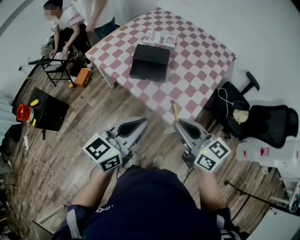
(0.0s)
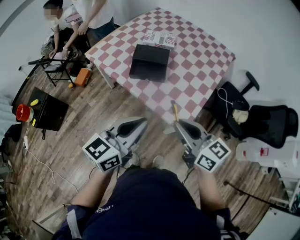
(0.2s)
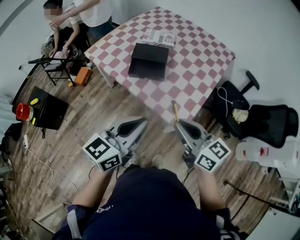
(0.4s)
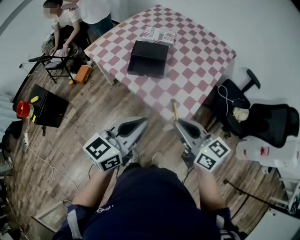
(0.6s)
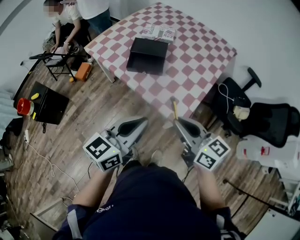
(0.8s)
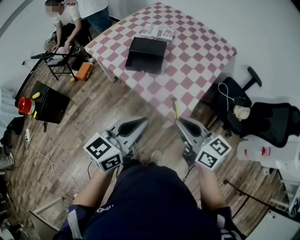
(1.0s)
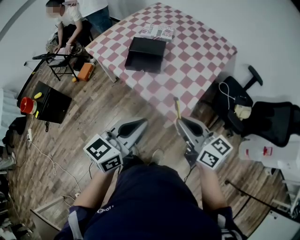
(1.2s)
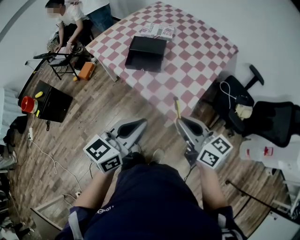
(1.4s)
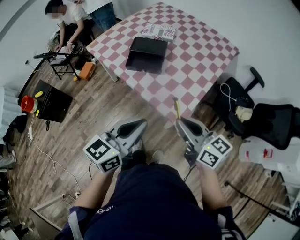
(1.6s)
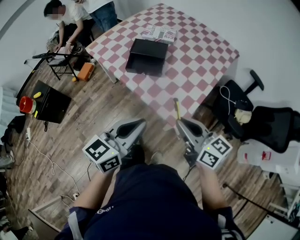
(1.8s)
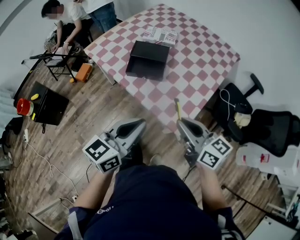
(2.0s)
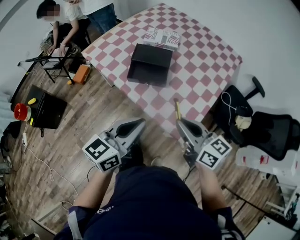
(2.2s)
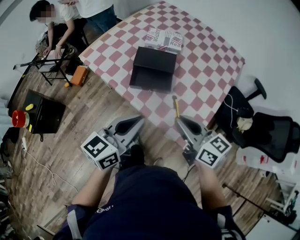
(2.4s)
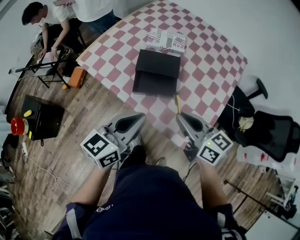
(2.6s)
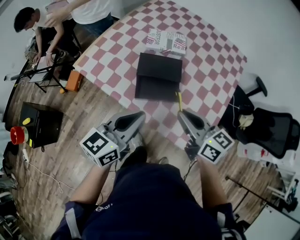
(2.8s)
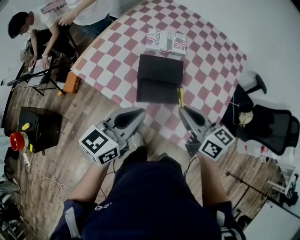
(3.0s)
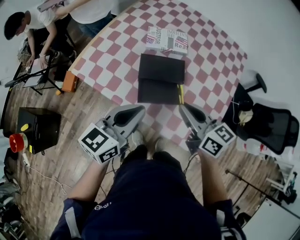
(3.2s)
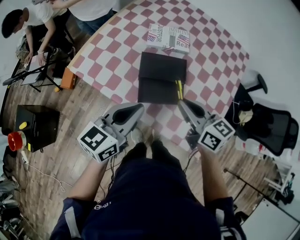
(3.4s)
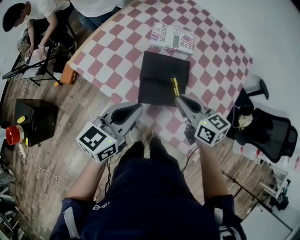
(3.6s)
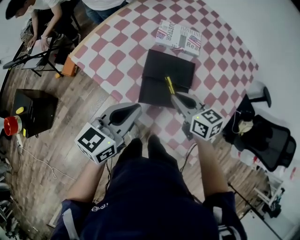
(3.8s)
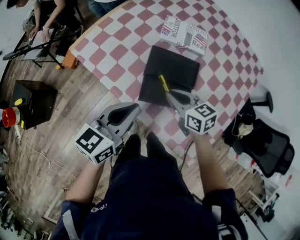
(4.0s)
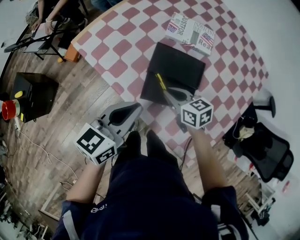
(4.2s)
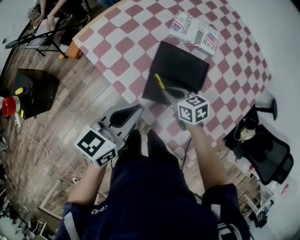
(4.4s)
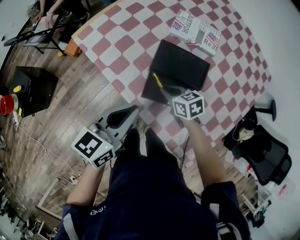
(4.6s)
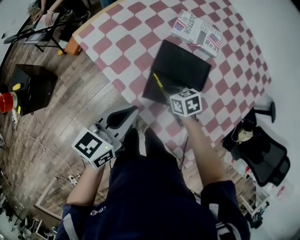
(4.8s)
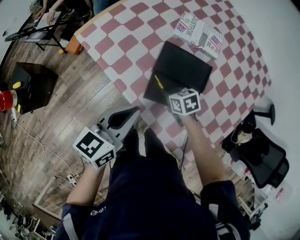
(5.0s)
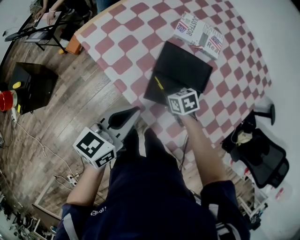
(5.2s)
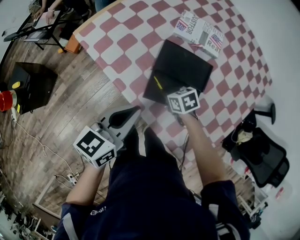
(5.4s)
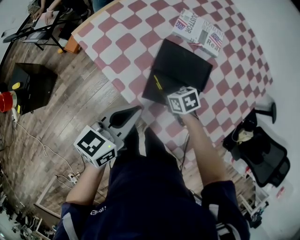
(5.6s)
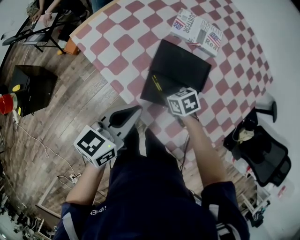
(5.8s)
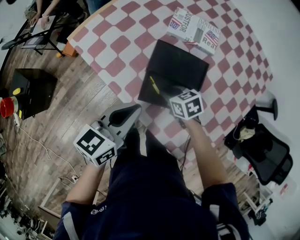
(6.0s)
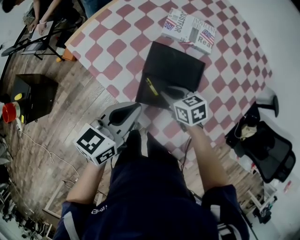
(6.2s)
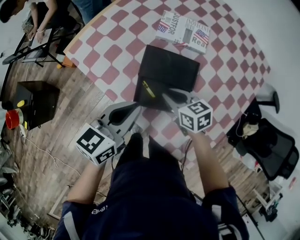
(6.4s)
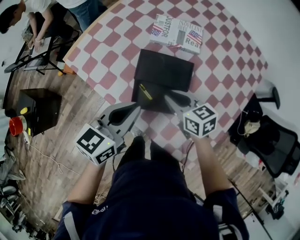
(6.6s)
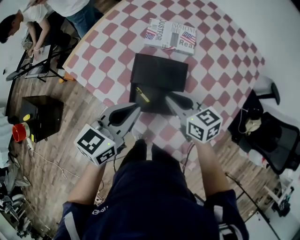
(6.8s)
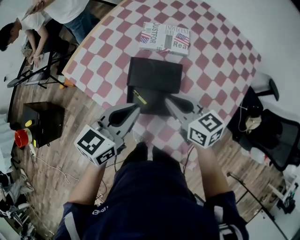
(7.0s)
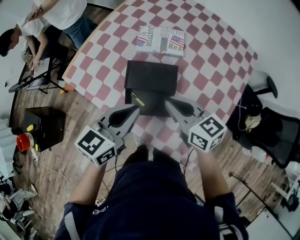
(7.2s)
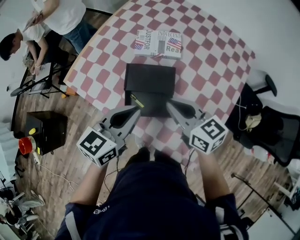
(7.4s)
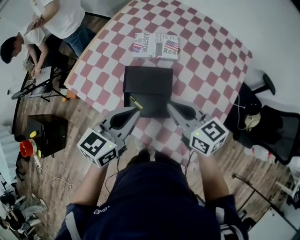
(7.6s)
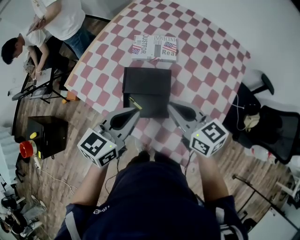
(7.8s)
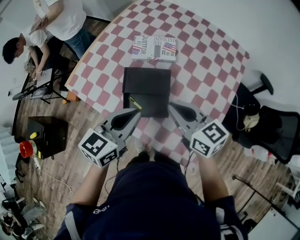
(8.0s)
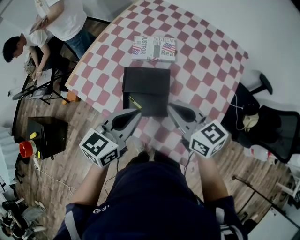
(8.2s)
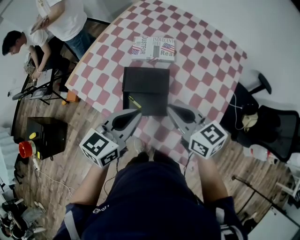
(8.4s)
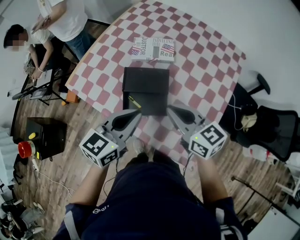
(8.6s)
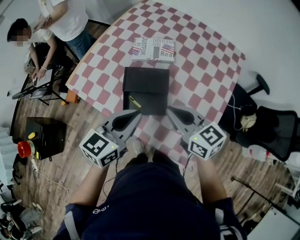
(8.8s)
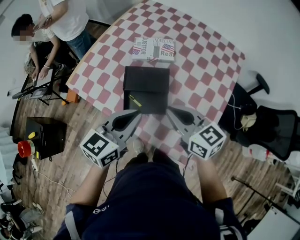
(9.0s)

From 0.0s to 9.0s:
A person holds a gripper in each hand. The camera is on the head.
From 0.0s to 1.6s: Both grippers travel together to the right, some 5 cm.
From 1.6s to 3.0s: Both grippers move forward and to the left, roughly 35 cm.
From 3.0s to 4.4s: The right gripper goes roughly 25 cm downward and forward, and changes its angle by some 40 degrees, while the left gripper heads downward and forward, covering roughly 10 cm.
From 6.0s to 7.6s: The left gripper goes roughly 15 cm to the right and upward; the right gripper goes some 30 cm upward and to the right, and tips its fingers upward by about 40 degrees.
From 7.6s to 9.0s: The right gripper travels backward by some 5 cm. The left gripper shifts by about 5 cm.

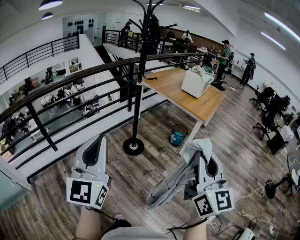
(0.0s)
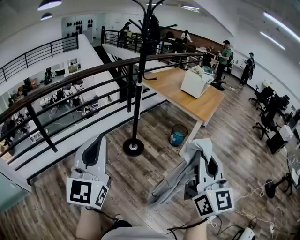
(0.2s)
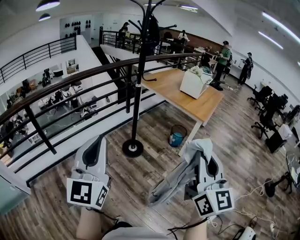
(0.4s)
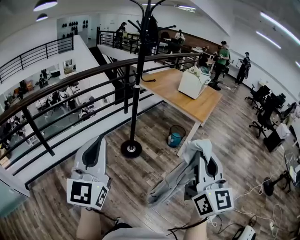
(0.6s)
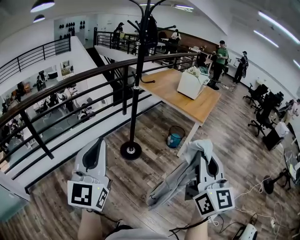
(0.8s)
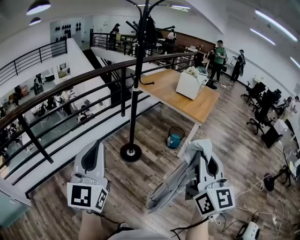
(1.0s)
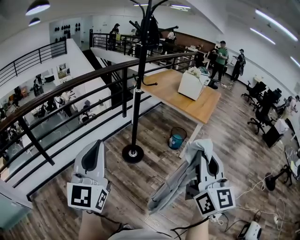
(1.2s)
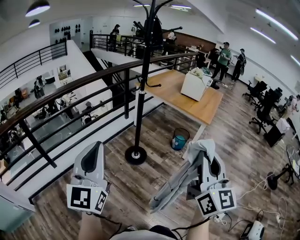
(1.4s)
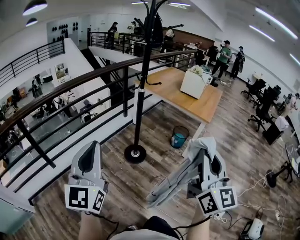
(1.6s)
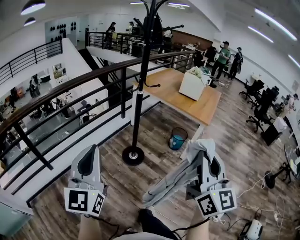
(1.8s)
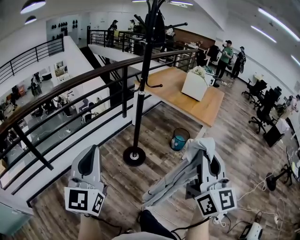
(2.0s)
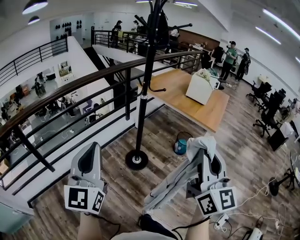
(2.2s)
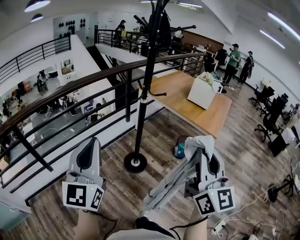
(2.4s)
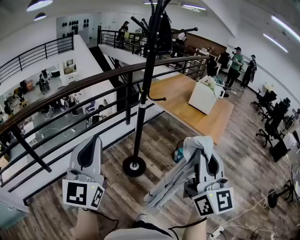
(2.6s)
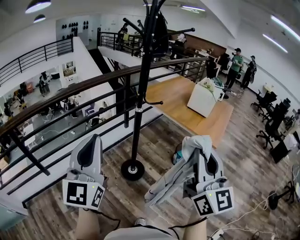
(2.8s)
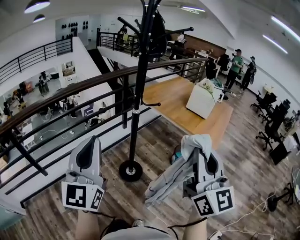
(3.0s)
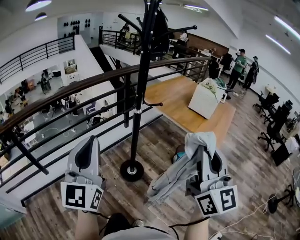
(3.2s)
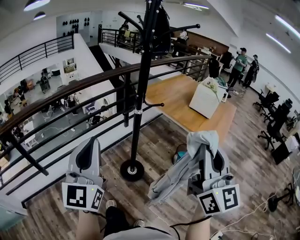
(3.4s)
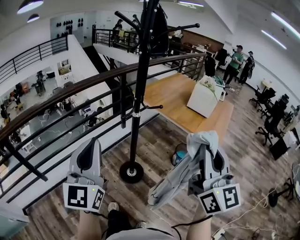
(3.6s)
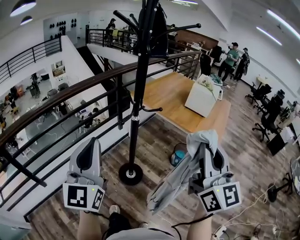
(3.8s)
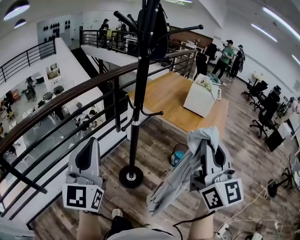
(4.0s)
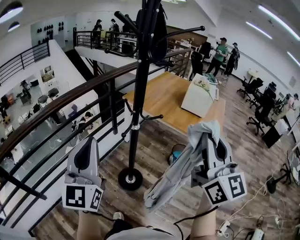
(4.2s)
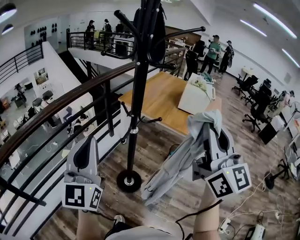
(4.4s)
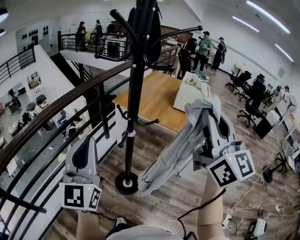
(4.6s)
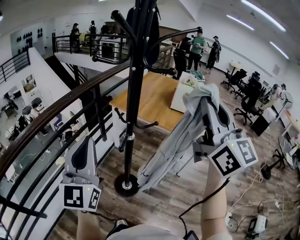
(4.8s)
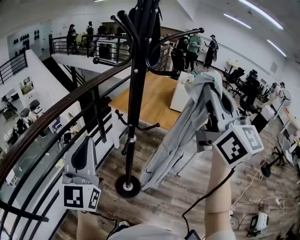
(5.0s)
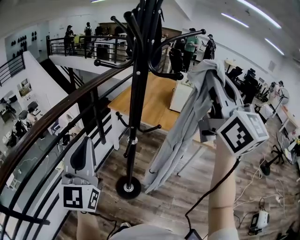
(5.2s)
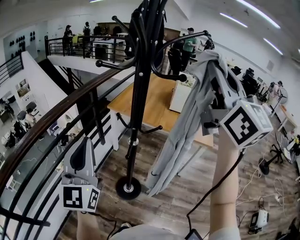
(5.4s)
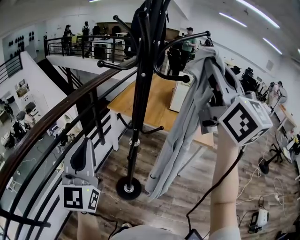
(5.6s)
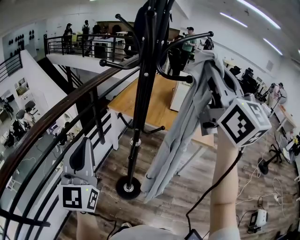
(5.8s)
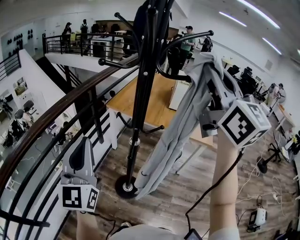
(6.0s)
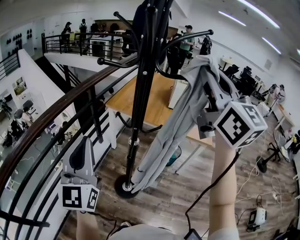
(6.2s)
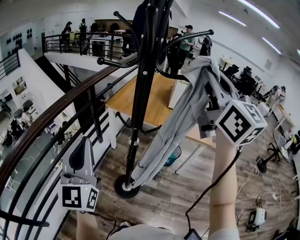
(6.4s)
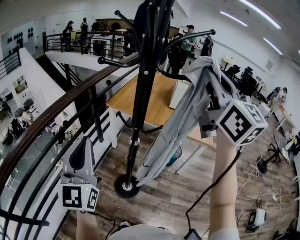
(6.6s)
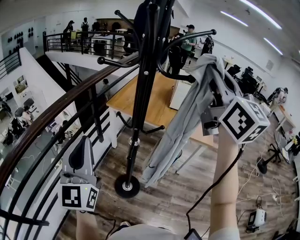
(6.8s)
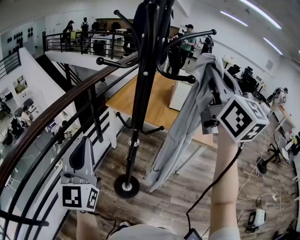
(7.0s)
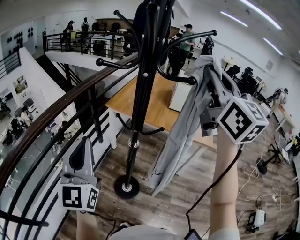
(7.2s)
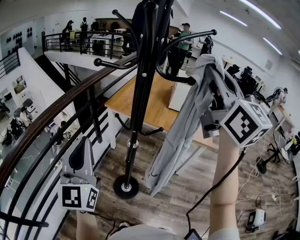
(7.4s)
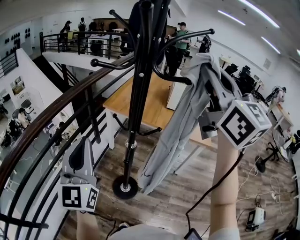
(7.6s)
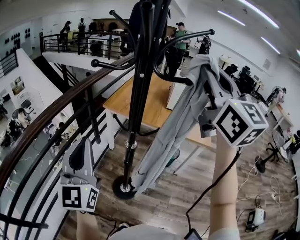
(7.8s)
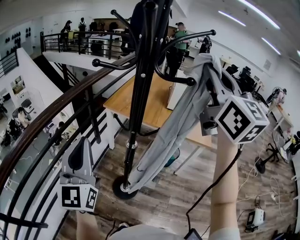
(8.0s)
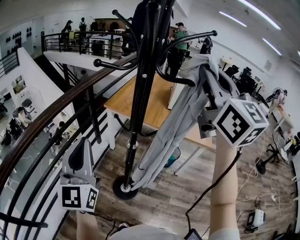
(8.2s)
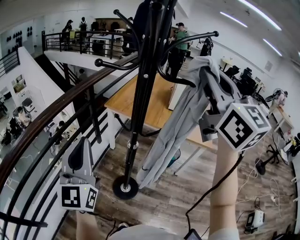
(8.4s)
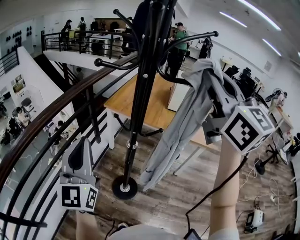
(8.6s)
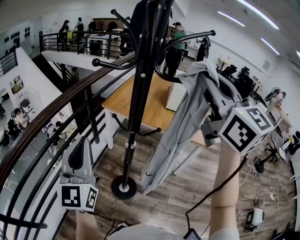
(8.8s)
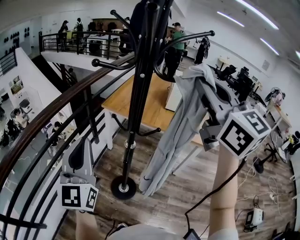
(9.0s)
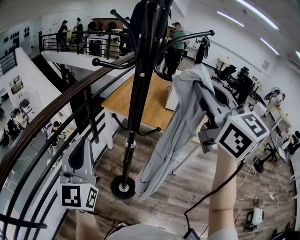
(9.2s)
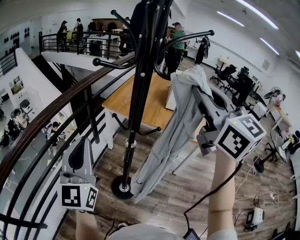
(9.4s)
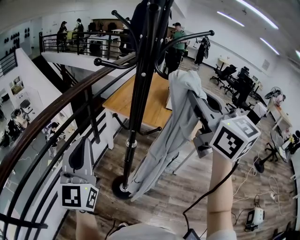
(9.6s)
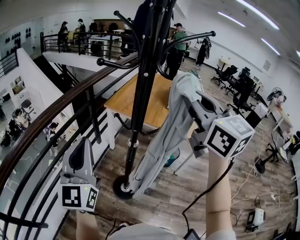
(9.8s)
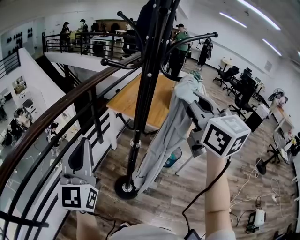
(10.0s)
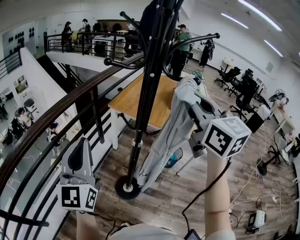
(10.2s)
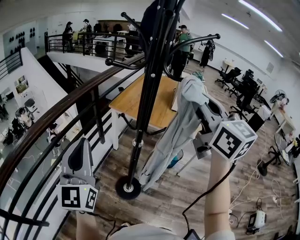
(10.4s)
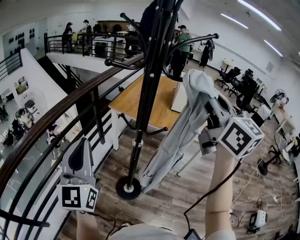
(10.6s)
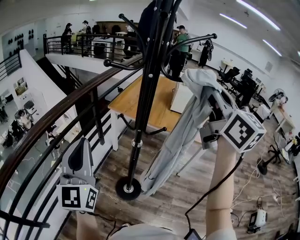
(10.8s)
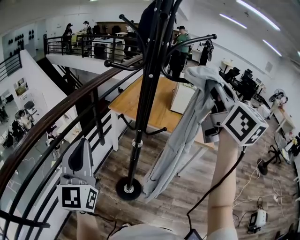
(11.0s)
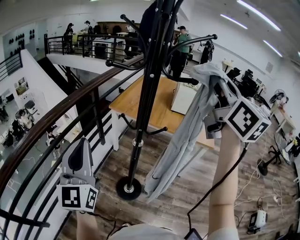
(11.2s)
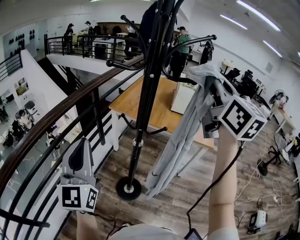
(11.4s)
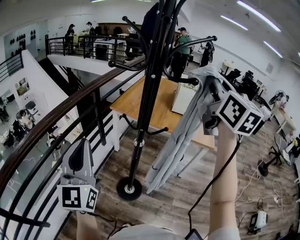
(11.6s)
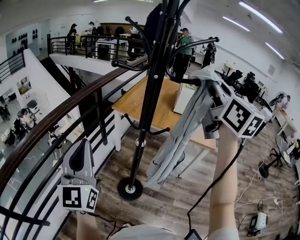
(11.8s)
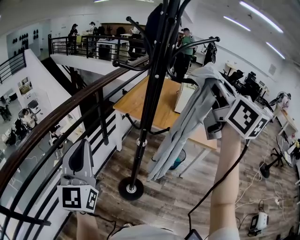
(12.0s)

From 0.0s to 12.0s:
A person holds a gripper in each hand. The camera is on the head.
From 0.0s to 1.6s: The grippers both shift to the left and forward by approximately 15 cm.
From 1.6s to 3.0s: Both grippers travel together forward, some 20 cm.
From 3.0s to 4.4s: The grippers both shift forward by roughly 20 cm.
From 4.4s to 6.0s: The right gripper shifts about 20 cm forward, upward and to the left; the left gripper heads forward and to the left, covering roughly 10 cm.
From 6.0s to 9.0s: There are only small adjustments of the grippers.
From 9.0s to 10.4s: The right gripper goes approximately 5 cm downward.
From 10.4s to 12.0s: The right gripper heads upward, covering some 5 cm.

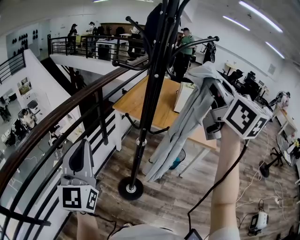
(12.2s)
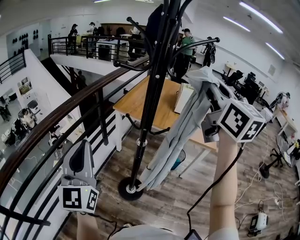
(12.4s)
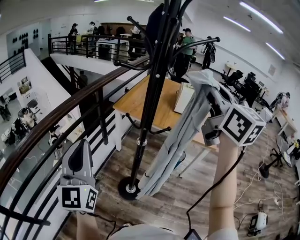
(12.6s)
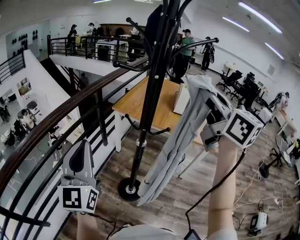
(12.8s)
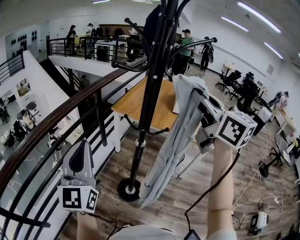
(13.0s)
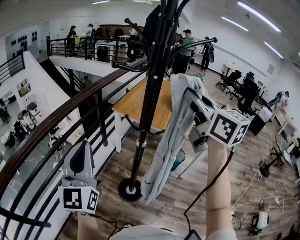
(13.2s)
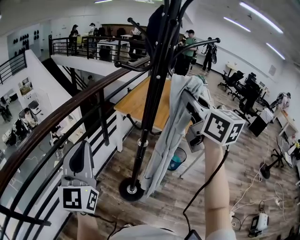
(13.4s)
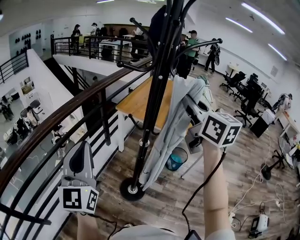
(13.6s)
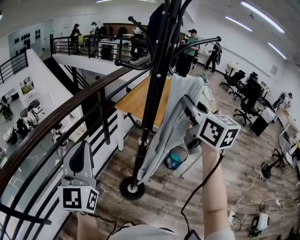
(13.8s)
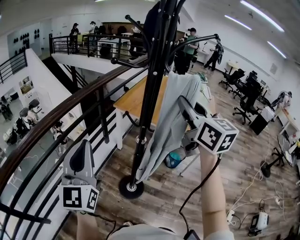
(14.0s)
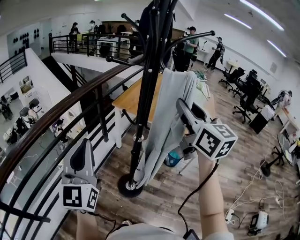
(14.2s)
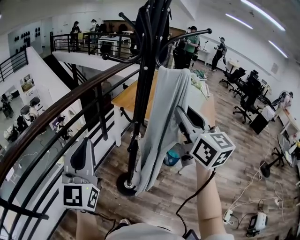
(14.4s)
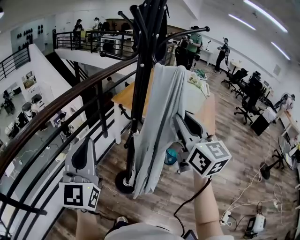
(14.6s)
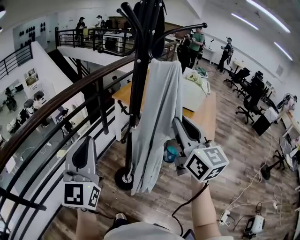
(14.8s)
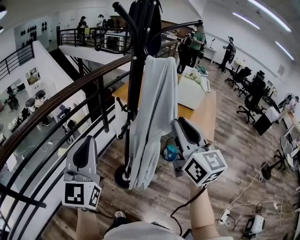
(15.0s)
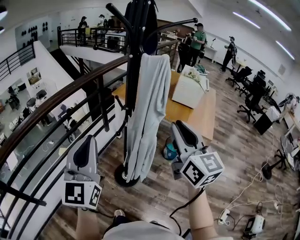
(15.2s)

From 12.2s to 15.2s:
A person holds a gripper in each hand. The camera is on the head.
From 12.2s to 13.8s: The right gripper shifts roughly 10 cm downward.
From 13.8s to 15.2s: The right gripper heads backward and downward, covering some 15 cm. Meanwhile the left gripper heads to the right and backward, covering about 15 cm.
